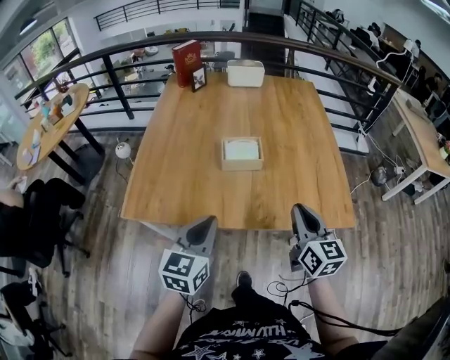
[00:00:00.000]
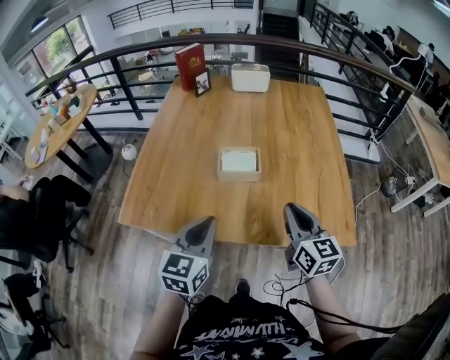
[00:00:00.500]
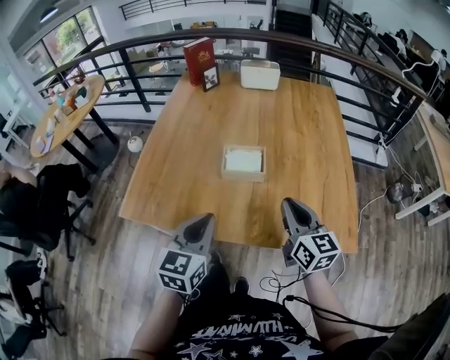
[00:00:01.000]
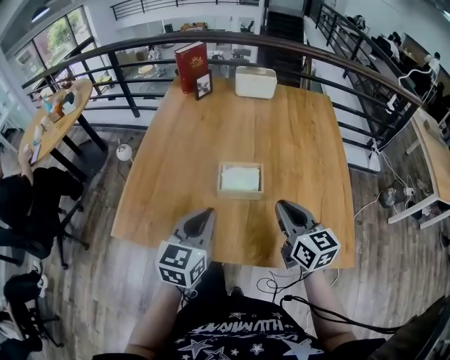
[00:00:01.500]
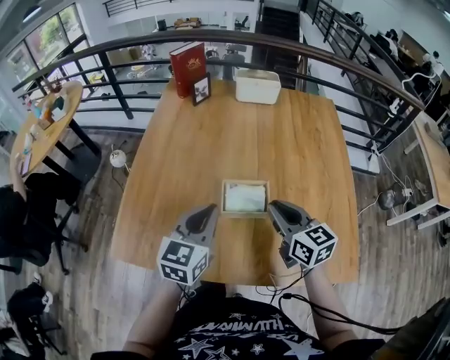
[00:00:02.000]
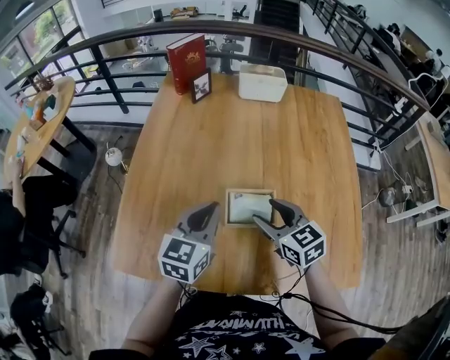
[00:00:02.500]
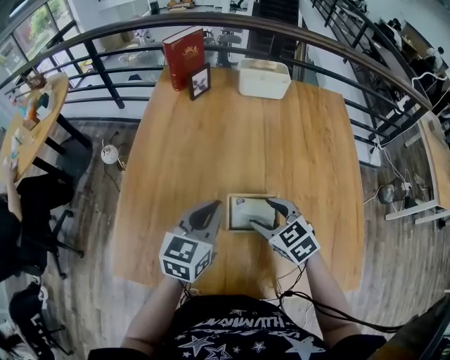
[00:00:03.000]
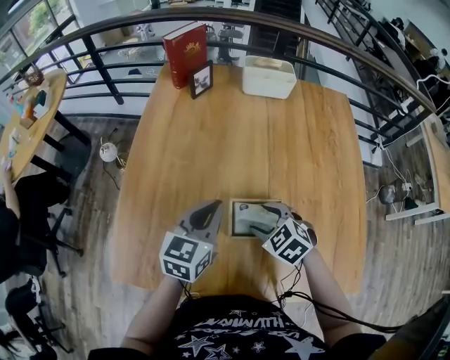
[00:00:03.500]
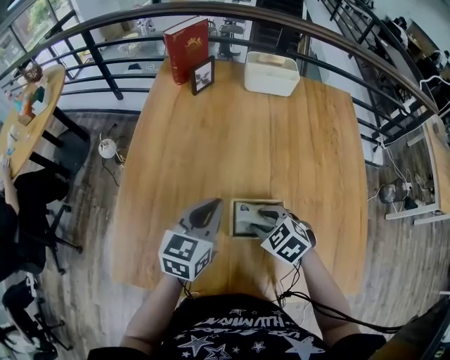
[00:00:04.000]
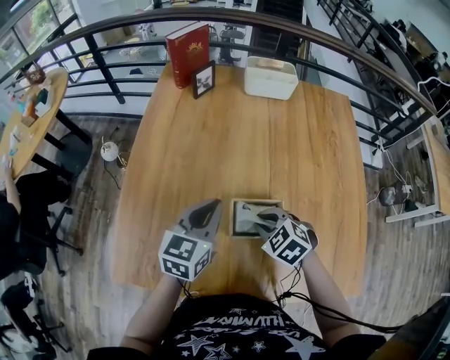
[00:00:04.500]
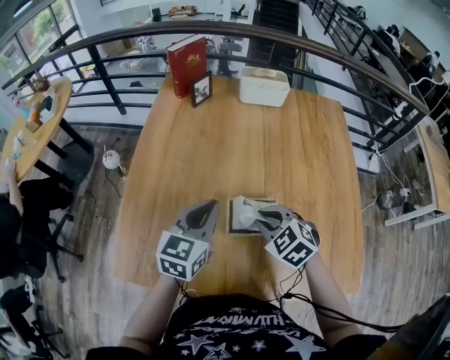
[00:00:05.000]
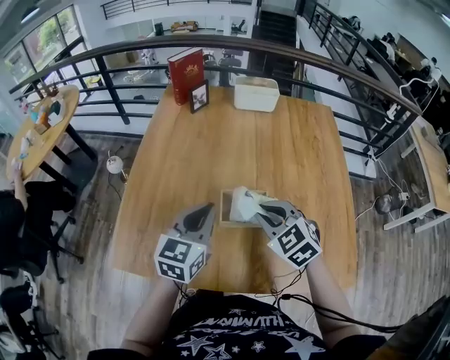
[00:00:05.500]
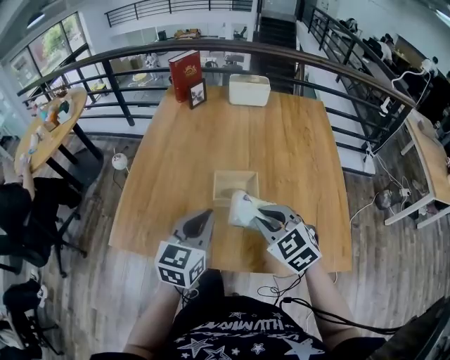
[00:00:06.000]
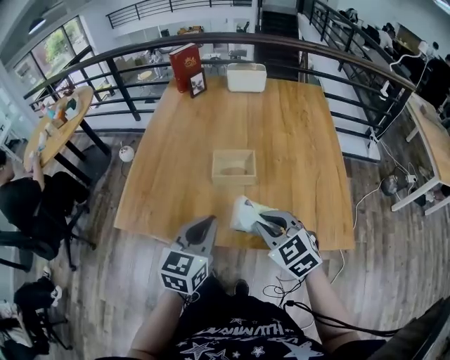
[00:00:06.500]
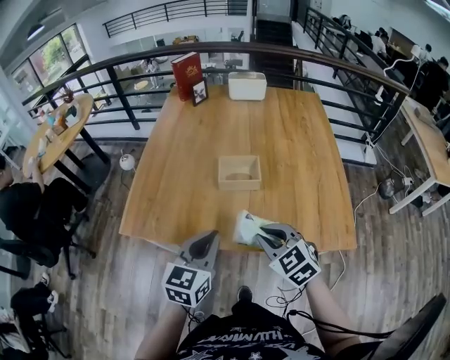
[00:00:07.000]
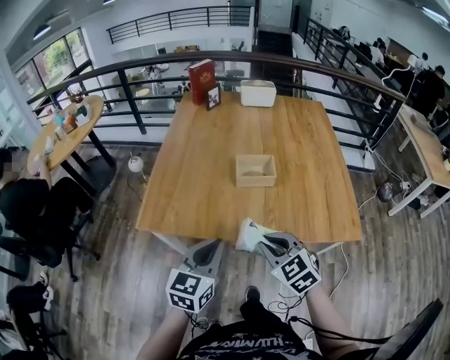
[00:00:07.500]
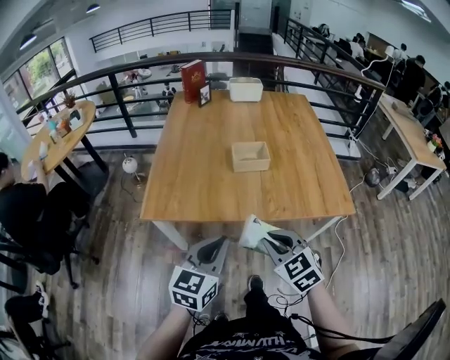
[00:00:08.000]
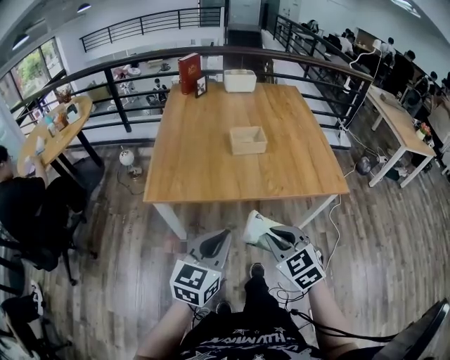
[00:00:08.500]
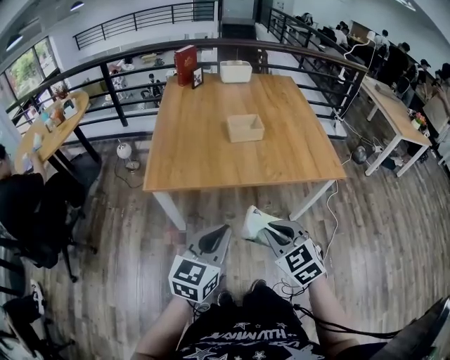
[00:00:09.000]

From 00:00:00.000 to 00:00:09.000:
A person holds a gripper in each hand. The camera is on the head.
From 00:00:00.000 to 00:00:02.000: Both grippers move forward, roughly 30 cm. The right gripper swivels some 20 degrees.
From 00:00:02.000 to 00:00:04.500: The left gripper is displaced forward by roughly 15 cm, while the right gripper is displaced downward, forward and to the left by about 15 cm, angles its fingers downward, by approximately 40 degrees, and opens and closes again.
From 00:00:04.500 to 00:00:07.000: Both grippers move backward, roughly 35 cm. The right gripper swivels approximately 20 degrees.
From 00:00:07.000 to 00:00:09.000: Both grippers move backward and to the left, approximately 35 cm.

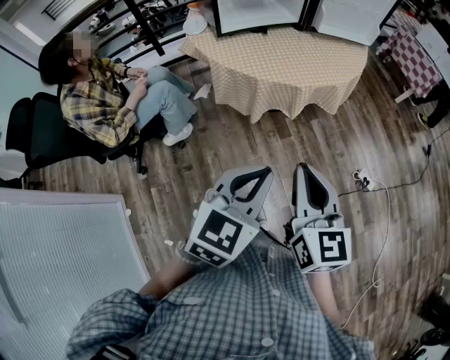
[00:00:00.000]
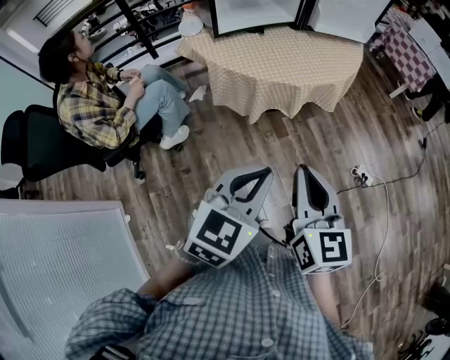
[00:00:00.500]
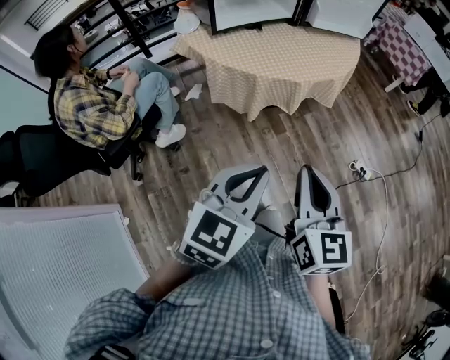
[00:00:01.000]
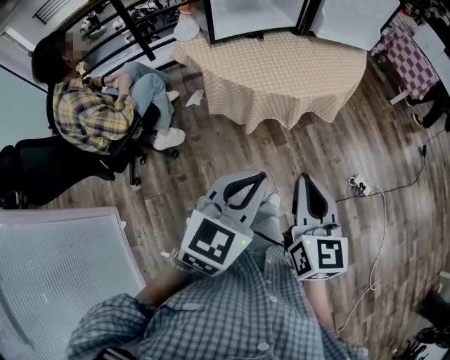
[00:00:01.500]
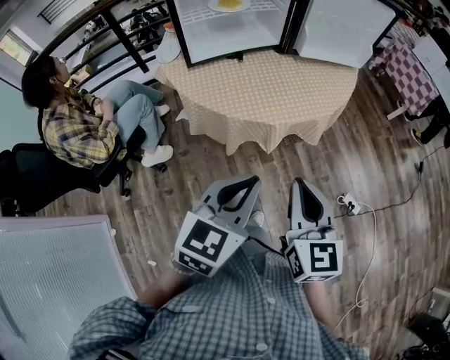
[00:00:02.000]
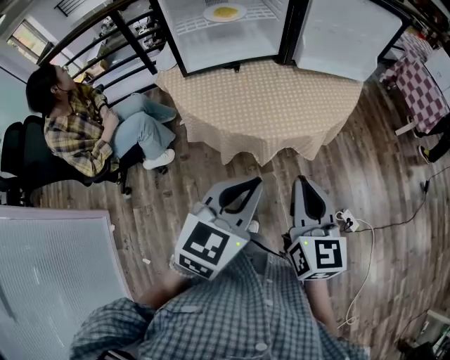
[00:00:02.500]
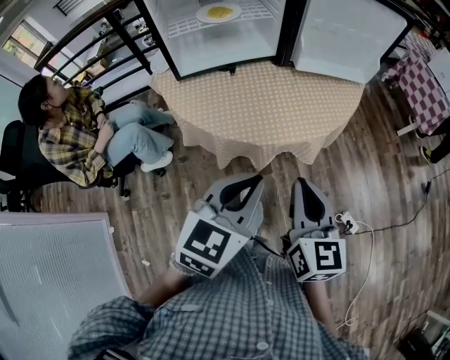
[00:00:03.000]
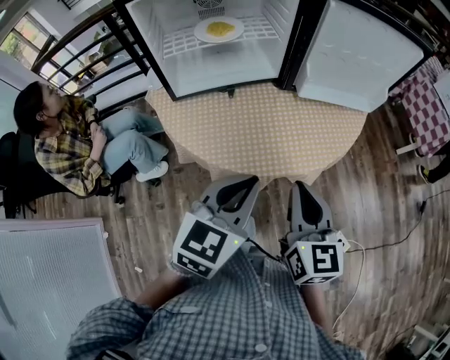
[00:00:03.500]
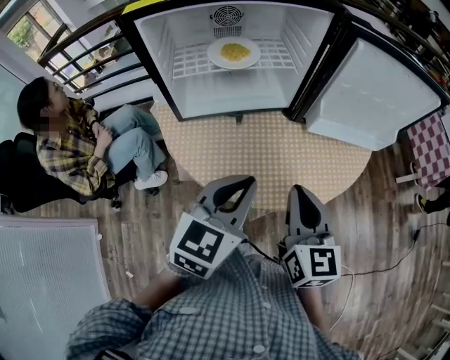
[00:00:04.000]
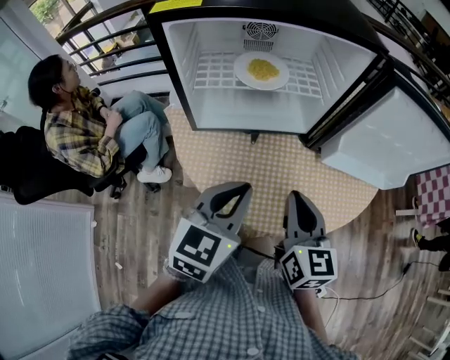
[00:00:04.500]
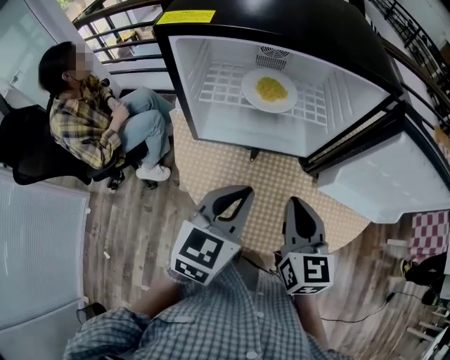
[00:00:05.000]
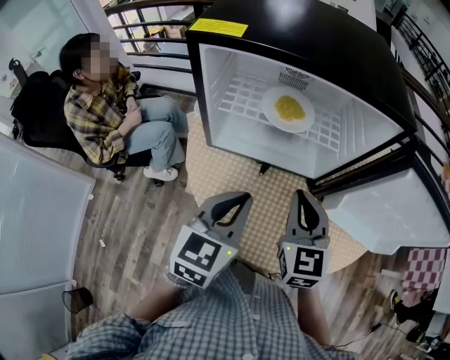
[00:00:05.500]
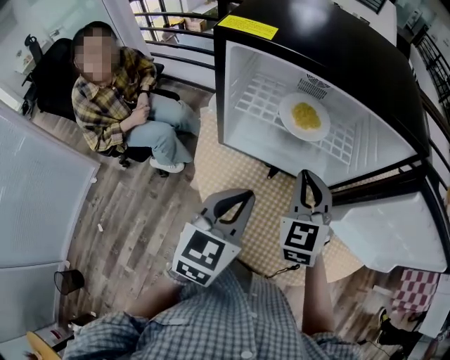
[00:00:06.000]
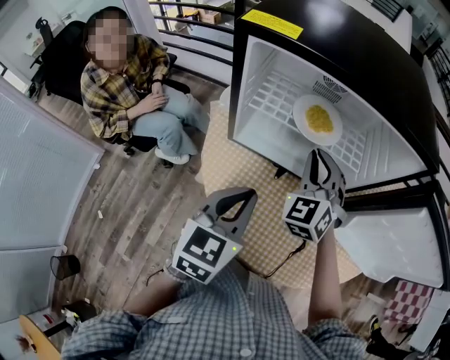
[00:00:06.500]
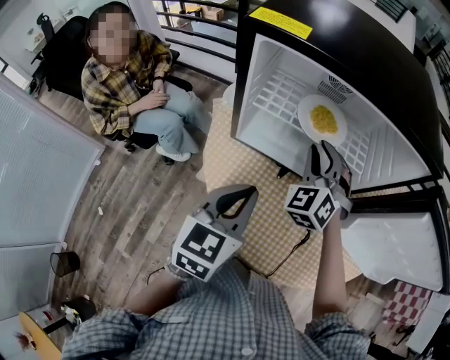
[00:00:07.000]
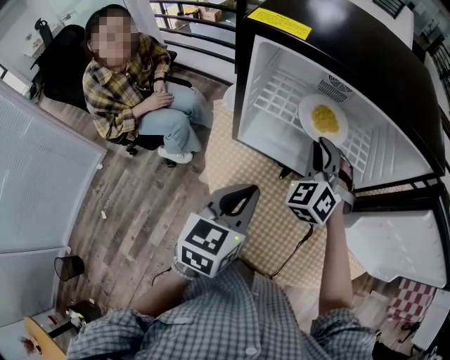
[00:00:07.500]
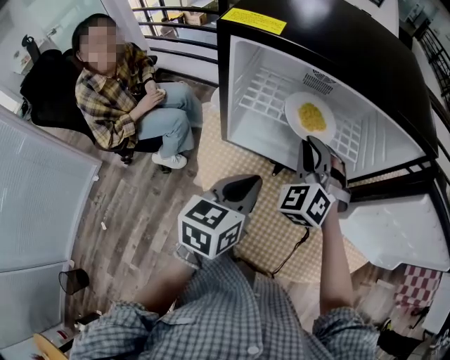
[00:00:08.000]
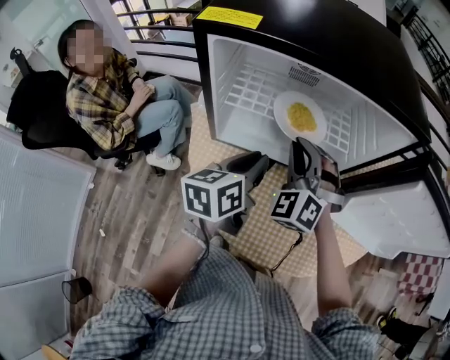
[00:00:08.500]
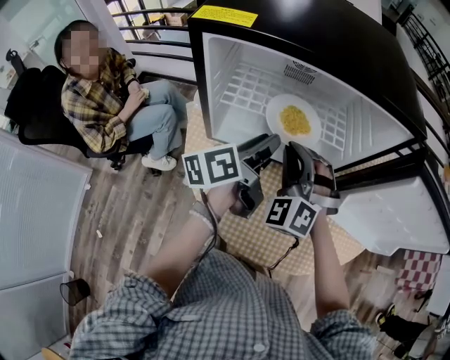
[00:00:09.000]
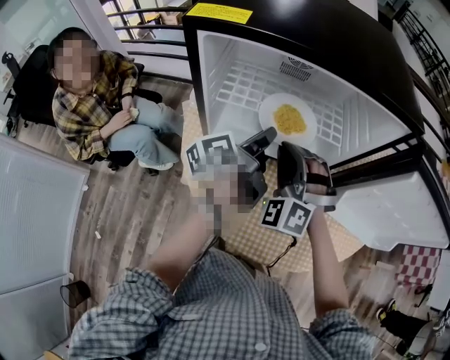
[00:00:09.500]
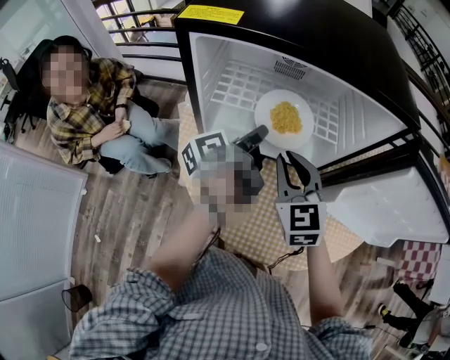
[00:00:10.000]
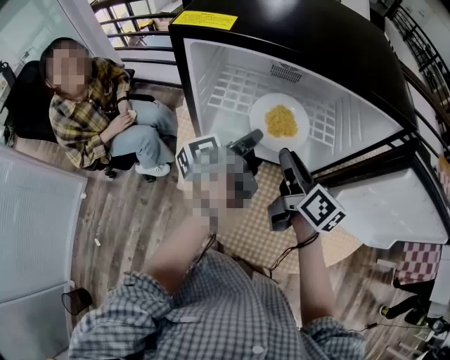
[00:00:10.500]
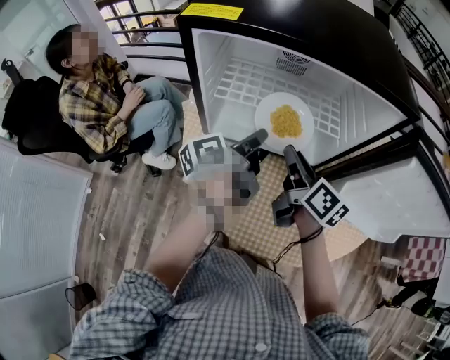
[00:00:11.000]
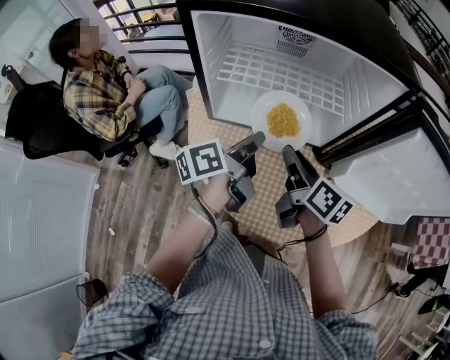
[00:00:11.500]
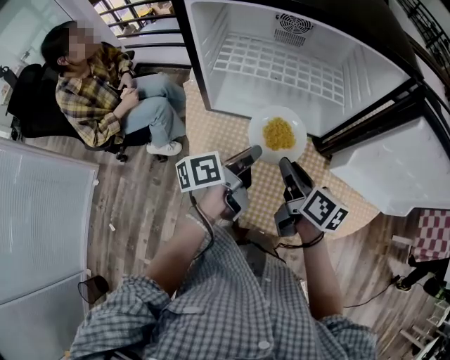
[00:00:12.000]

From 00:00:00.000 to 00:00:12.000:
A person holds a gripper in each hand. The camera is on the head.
From 00:00:00.000 to 00:00:02.000: Both grippers move forward, about 15 cm.
From 00:00:02.000 to 00:00:04.000: The two grippers go roughly 30 cm forward.
From 00:00:04.000 to 00:00:06.000: The right gripper heads forward, covering about 25 cm, and twists some 40 degrees counterclockwise, seen from behind, while the left gripper goes some 15 cm forward and to the left, and swivels about 30 degrees.
From 00:00:06.000 to 00:00:08.000: The left gripper ends up roughly 5 cm from where it was; the right gripper travels forward by roughly 5 cm, and changes its angle by approximately 30 degrees.
From 00:00:08.000 to 00:00:10.000: The left gripper moves forward, approximately 15 cm, rotates around the line of its fingers by roughly 50 degrees, counterclockwise from behind, and opens and closes again, while the right gripper is displaced backward by some 5 cm, and changes its angle by some 40 degrees.
From 00:00:10.000 to 00:00:12.000: The right gripper goes approximately 10 cm downward and backward, and rotates around the line of its fingers by some 70 degrees, clockwise from behind. The left gripper goes about 15 cm backward and downward.

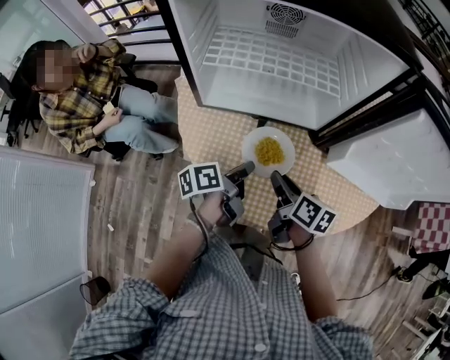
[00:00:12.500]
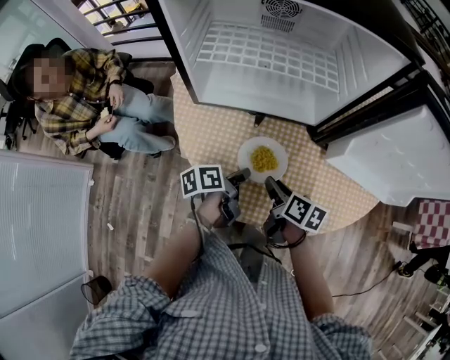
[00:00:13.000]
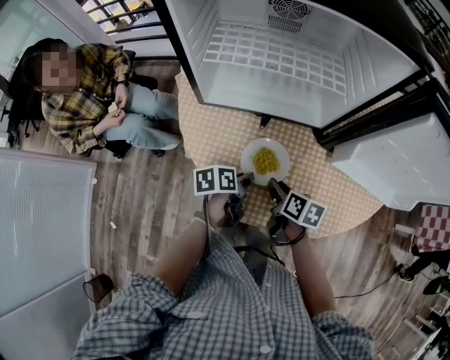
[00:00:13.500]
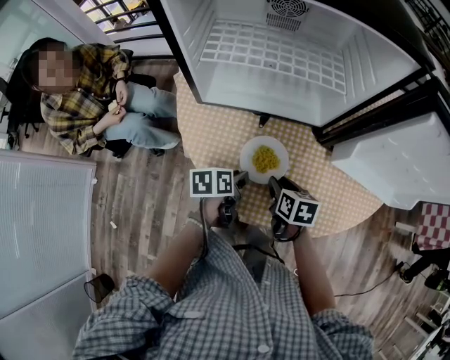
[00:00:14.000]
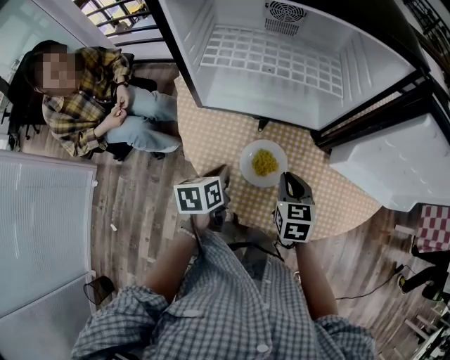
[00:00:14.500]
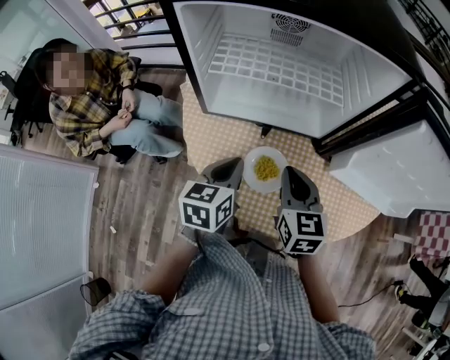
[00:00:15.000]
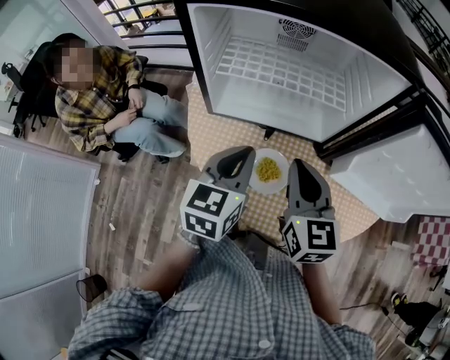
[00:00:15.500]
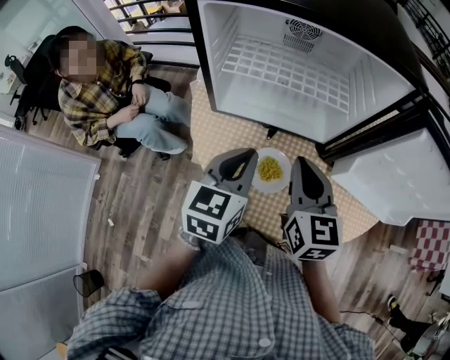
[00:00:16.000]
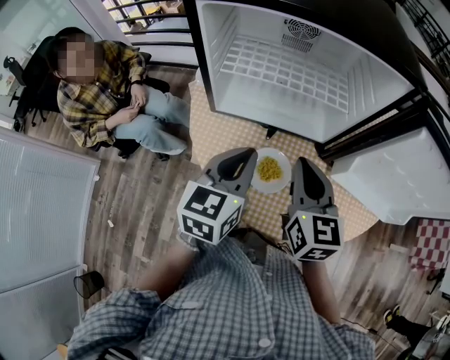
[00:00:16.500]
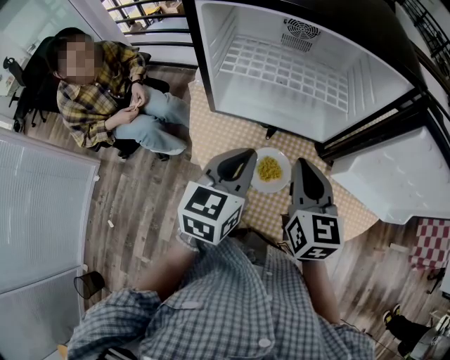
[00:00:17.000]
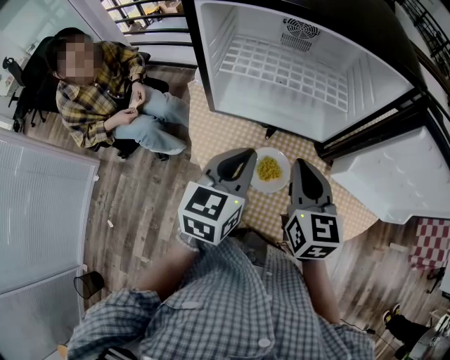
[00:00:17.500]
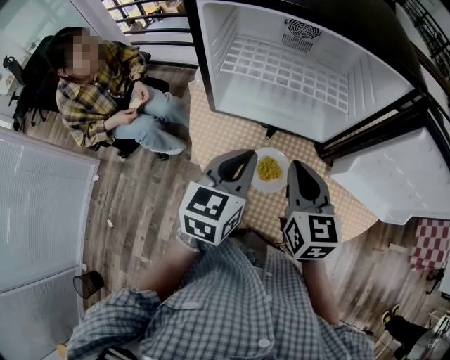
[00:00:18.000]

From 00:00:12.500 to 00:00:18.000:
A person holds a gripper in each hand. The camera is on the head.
From 00:00:12.500 to 00:00:14.500: The right gripper travels downward and back again, some 10 cm each way, and twists about 40 degrees counterclockwise, seen from behind; the left gripper heads to the left, covering roughly 5 cm, and changes its angle by about 40 degrees.
From 00:00:14.500 to 00:00:16.000: Both grippers travel together upward, about 20 cm. The right gripper rotates approximately 20 degrees, while the left gripper turns by about 40 degrees.
From 00:00:16.000 to 00:00:18.000: The grippers make only small movements.
